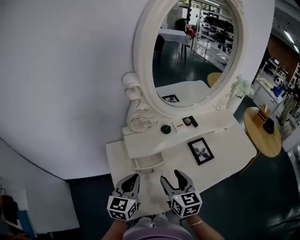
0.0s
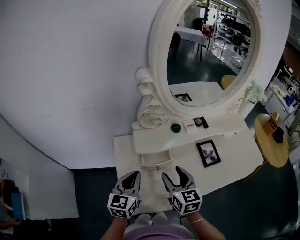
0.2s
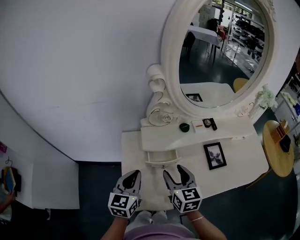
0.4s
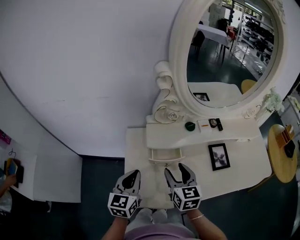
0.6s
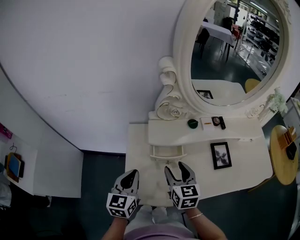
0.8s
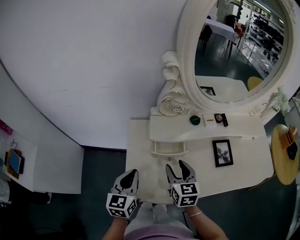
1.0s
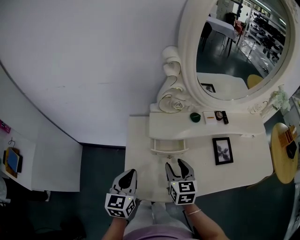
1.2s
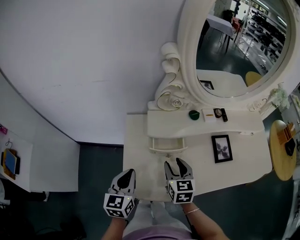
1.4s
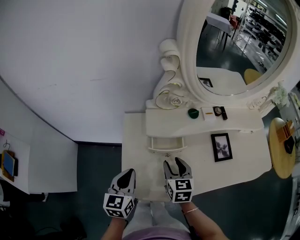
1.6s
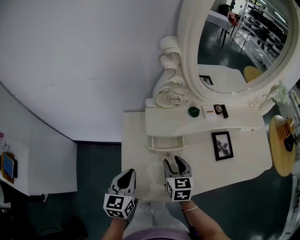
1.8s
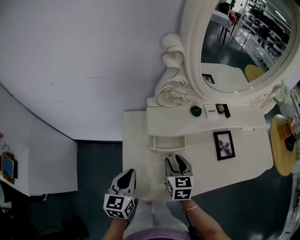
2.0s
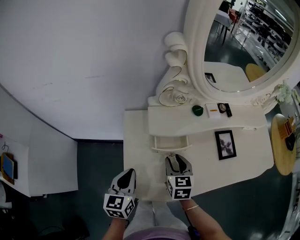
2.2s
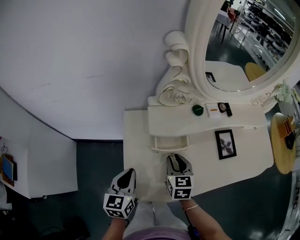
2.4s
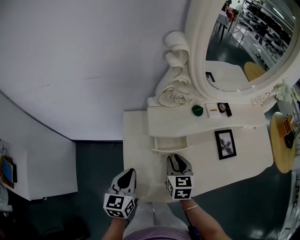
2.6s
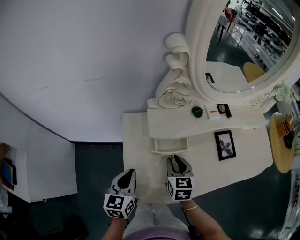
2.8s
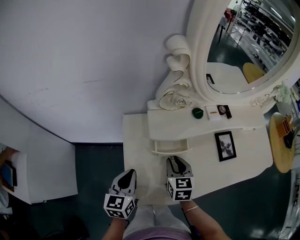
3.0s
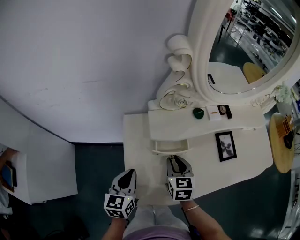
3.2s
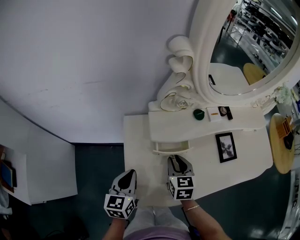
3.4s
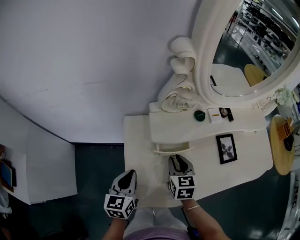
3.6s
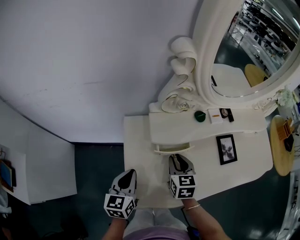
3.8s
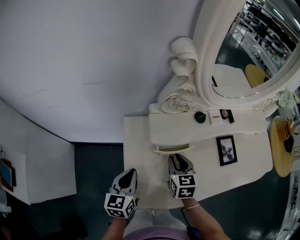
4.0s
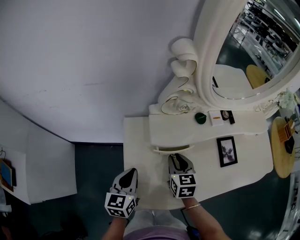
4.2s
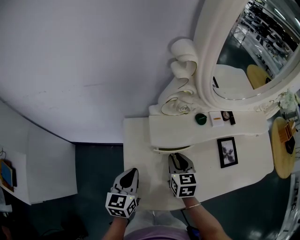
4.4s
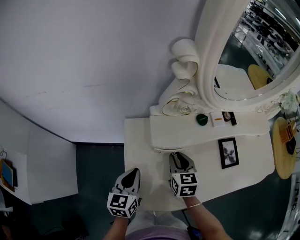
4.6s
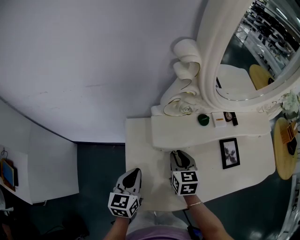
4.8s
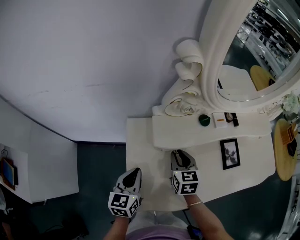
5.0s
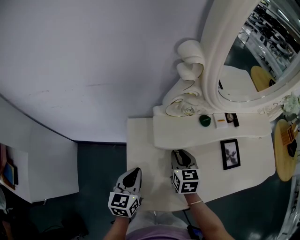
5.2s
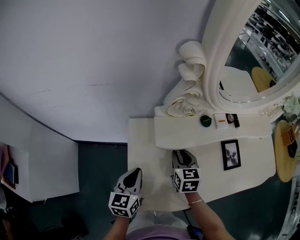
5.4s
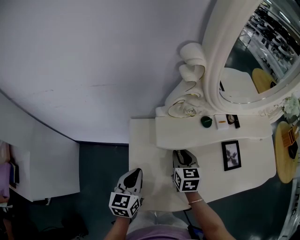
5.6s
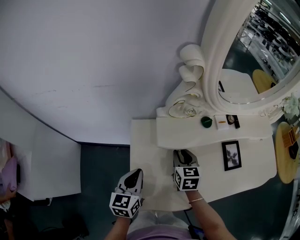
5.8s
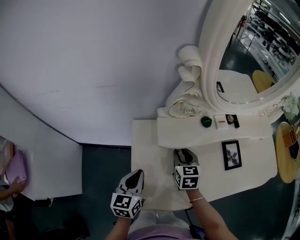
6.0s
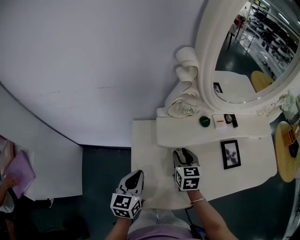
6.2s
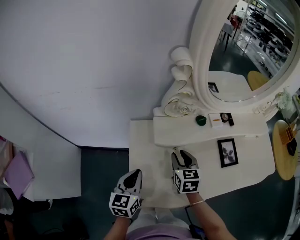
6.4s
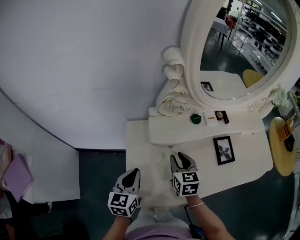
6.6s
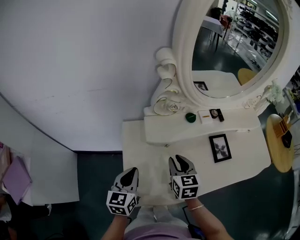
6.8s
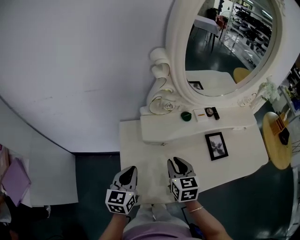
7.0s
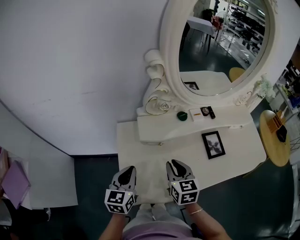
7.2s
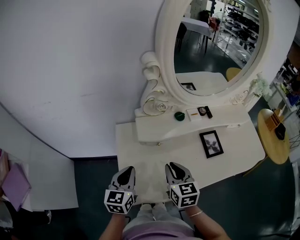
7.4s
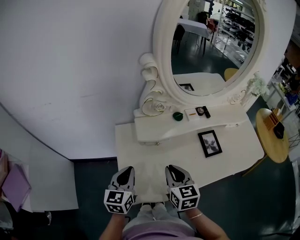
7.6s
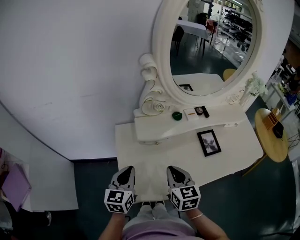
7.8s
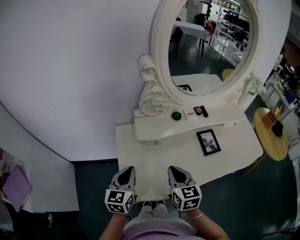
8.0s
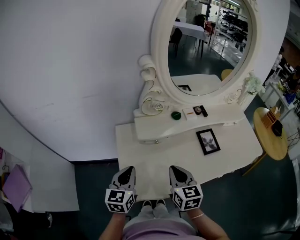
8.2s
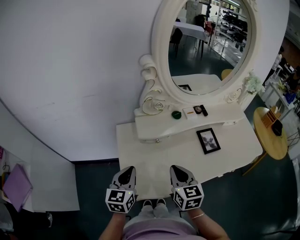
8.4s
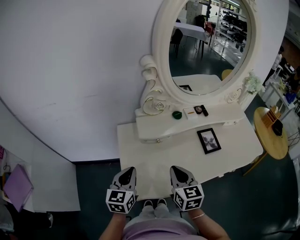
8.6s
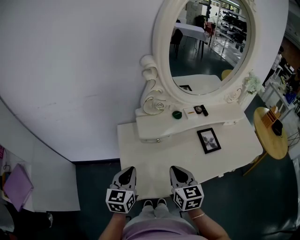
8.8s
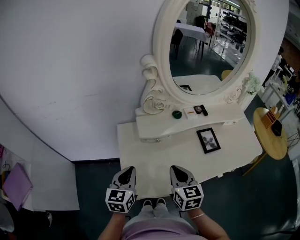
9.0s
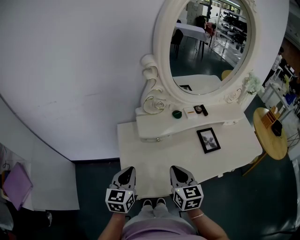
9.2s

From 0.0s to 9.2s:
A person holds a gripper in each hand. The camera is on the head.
From 0.0s to 1.6s: The right gripper heads downward, covering approximately 10 cm. The left gripper heads to the left, downward and backward, covering roughly 10 cm, and changes its angle by some 20 degrees.
From 1.6s to 3.0s: The grippers move only a little.
From 3.0s to 4.6s: The right gripper is displaced forward by roughly 5 cm.
From 4.6s to 6.2s: The grippers make only small movements.
From 6.2s to 7.6s: The right gripper goes about 15 cm backward and upward, and closes its fingers. Meanwhile the left gripper moves approximately 5 cm.
From 7.6s to 9.2s: The grippers move only a little.

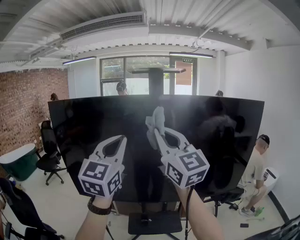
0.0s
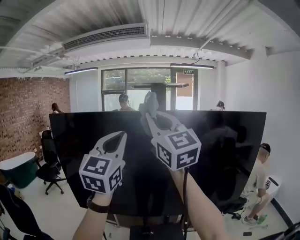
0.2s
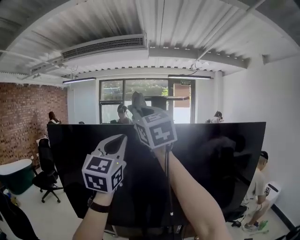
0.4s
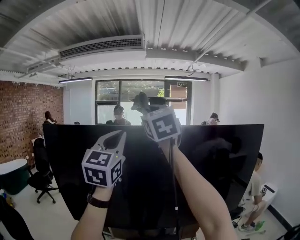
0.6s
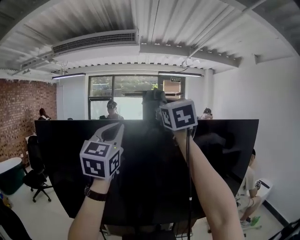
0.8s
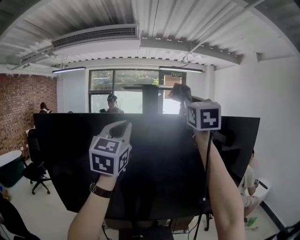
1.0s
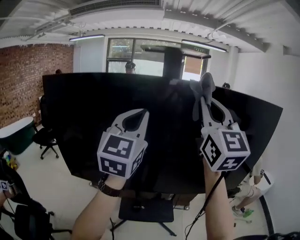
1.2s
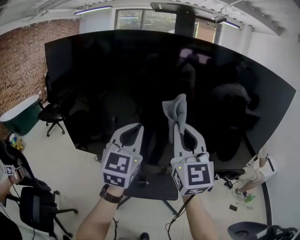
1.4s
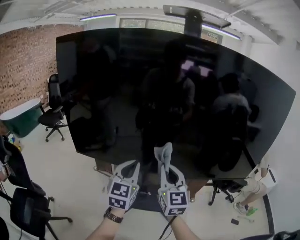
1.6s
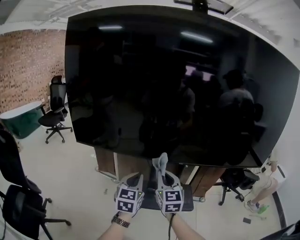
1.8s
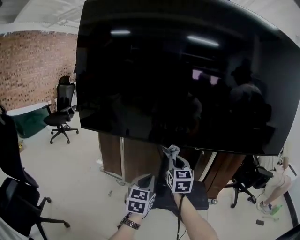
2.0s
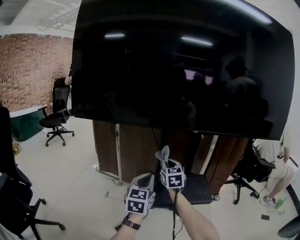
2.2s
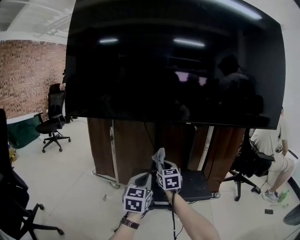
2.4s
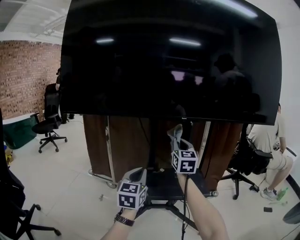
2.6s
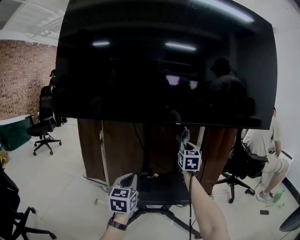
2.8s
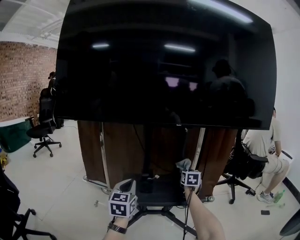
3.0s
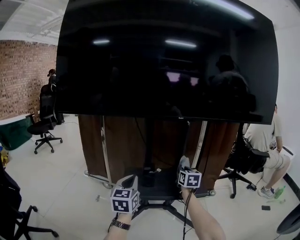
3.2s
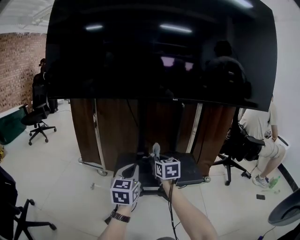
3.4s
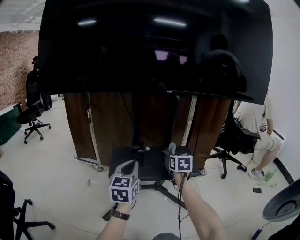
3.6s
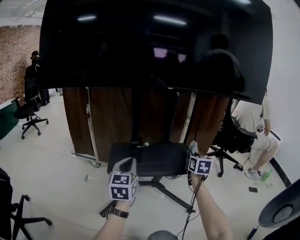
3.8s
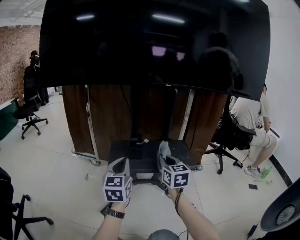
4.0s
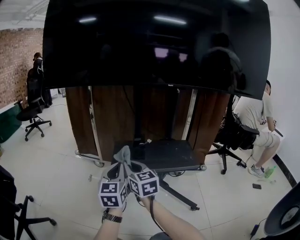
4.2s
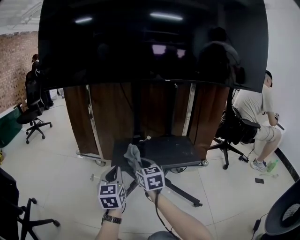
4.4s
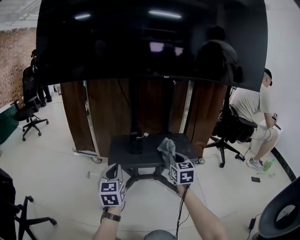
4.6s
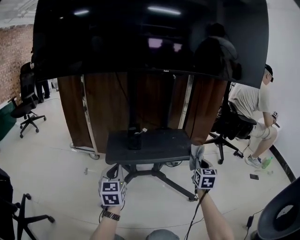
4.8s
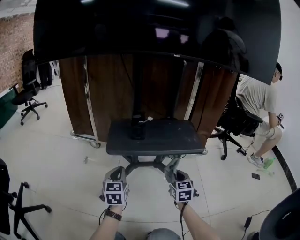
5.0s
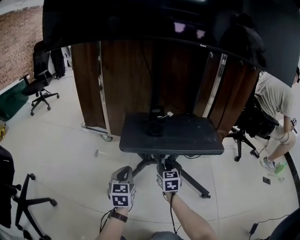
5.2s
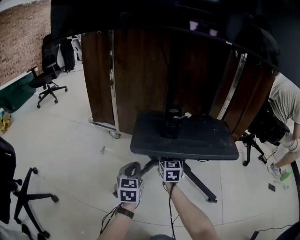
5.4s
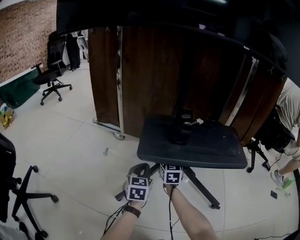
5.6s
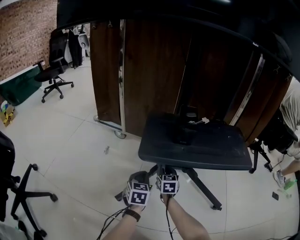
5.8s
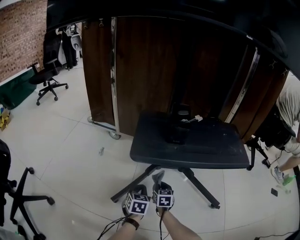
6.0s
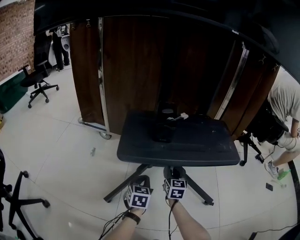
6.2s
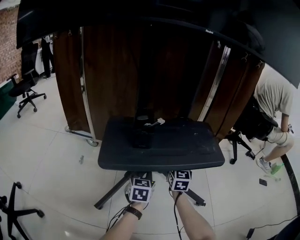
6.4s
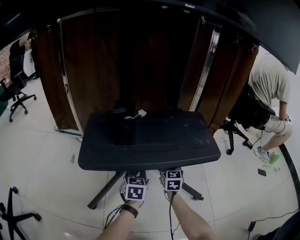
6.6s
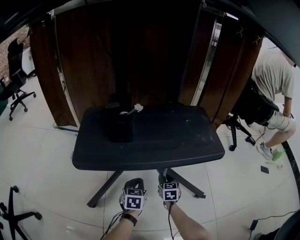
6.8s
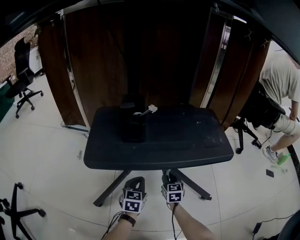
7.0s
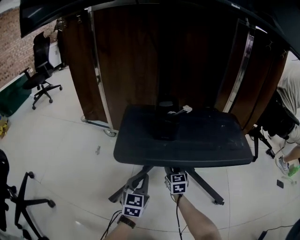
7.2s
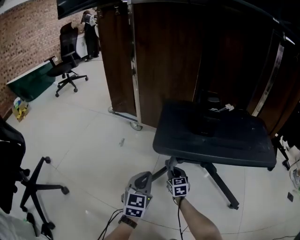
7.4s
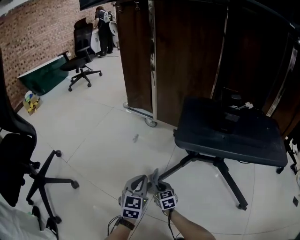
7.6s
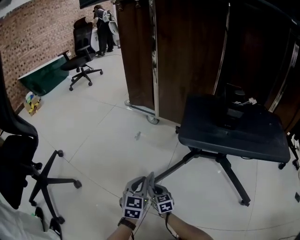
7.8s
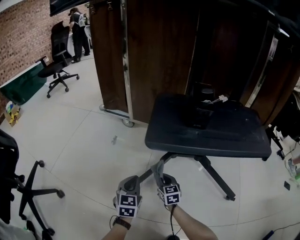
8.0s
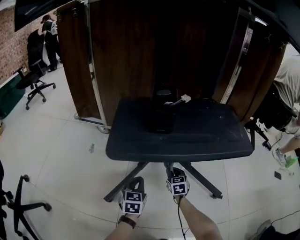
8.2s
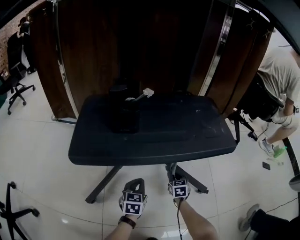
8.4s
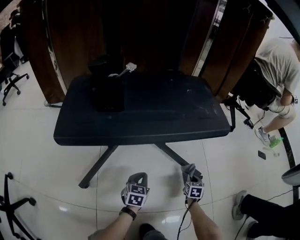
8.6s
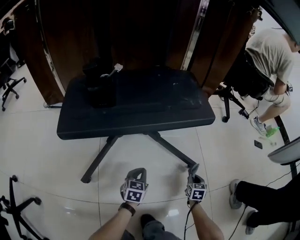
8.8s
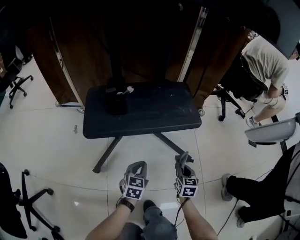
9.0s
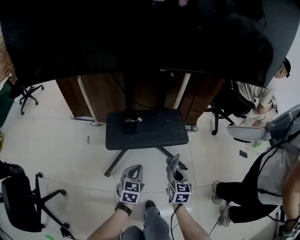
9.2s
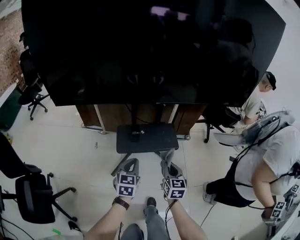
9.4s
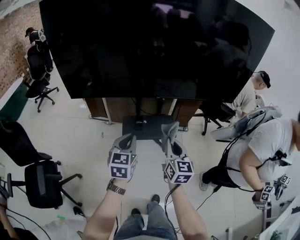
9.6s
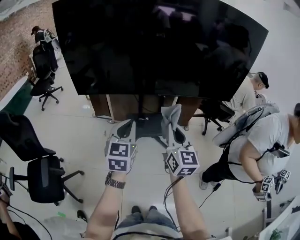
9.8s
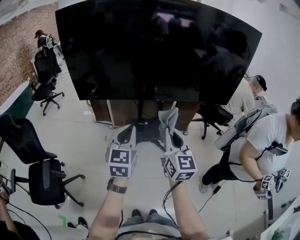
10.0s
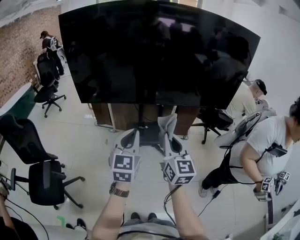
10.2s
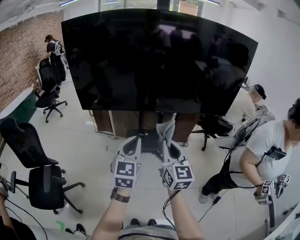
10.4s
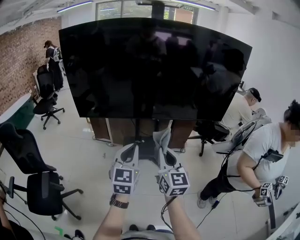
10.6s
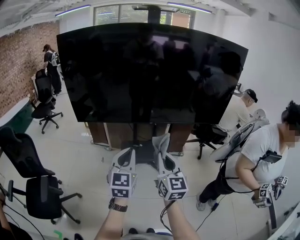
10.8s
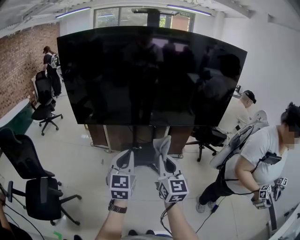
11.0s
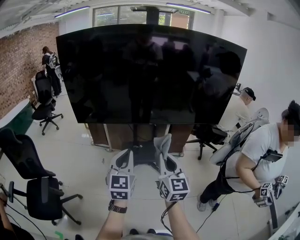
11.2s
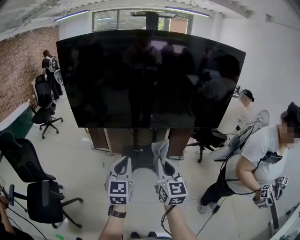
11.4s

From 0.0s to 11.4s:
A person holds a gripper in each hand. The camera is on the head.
From 0.0s to 1.4s: Both grippers move downward, roughly 20 cm.
From 1.4s to 2.8s: Both grippers travel together downward, roughly 70 cm. The right gripper changes its angle by roughly 20 degrees.
From 2.8s to 4.2s: The right gripper swings left and right, some 35 cm each way, with 3 reversals, and swivels about 30 degrees; the left gripper goes roughly 10 cm downward and backward.
From 4.2s to 5.6s: Both grippers travel together downward and forward, approximately 30 cm. The right gripper goes to the right and returns, roughly 40 cm each way.
From 5.6s to 7.2s: The left gripper moves downward and to the right, approximately 10 cm; the right gripper goes about 15 cm downward and to the right.
From 7.2s to 8.6s: The left gripper goes approximately 20 cm downward, and rotates about 20 degrees. Meanwhile the right gripper moves up and down over some 20 cm, changing direction 2 times, and turns by some 40 degrees.
From 8.6s to 10.0s: Both grippers are carried backward, about 40 cm. The grippers both shift upward by roughly 1 m. The left gripper tilts its fingers about 30 degrees upward, while the right gripper points its fingers some 50 degrees further upward.
From 10.0s to 11.4s: The left gripper goes roughly 5 cm backward.

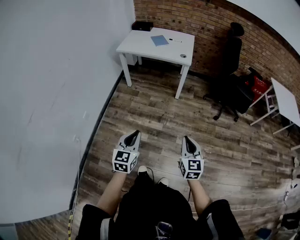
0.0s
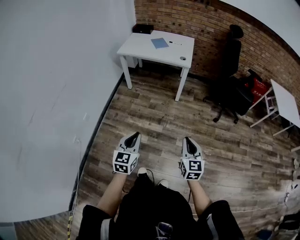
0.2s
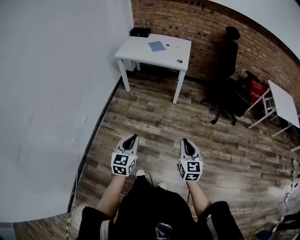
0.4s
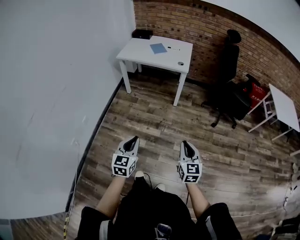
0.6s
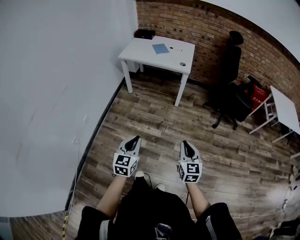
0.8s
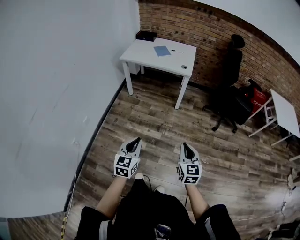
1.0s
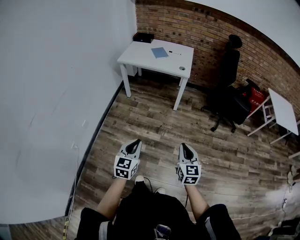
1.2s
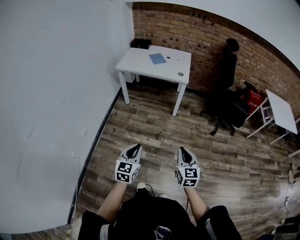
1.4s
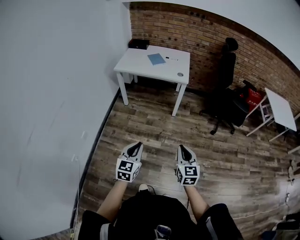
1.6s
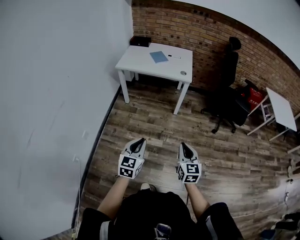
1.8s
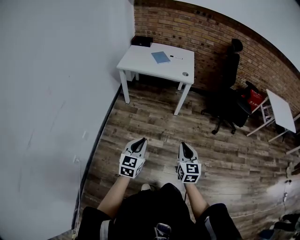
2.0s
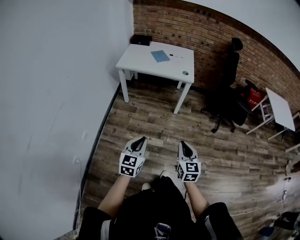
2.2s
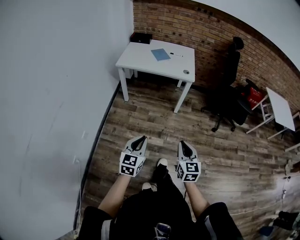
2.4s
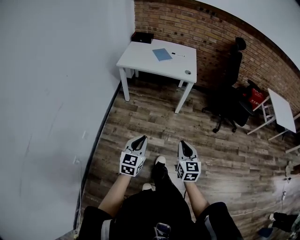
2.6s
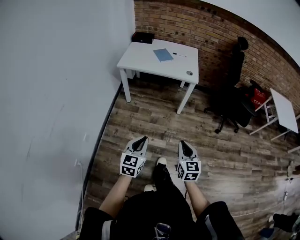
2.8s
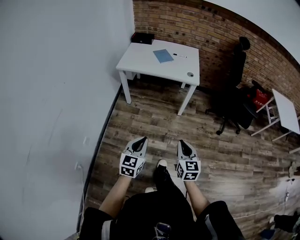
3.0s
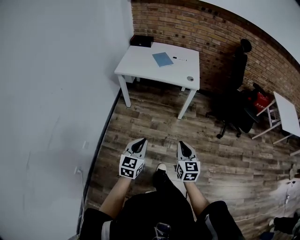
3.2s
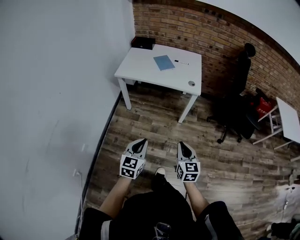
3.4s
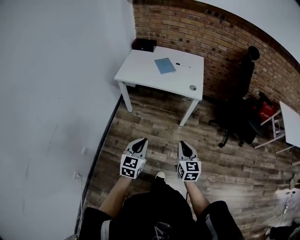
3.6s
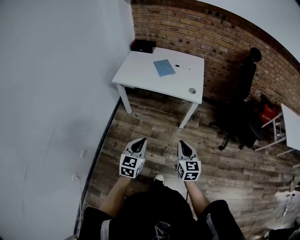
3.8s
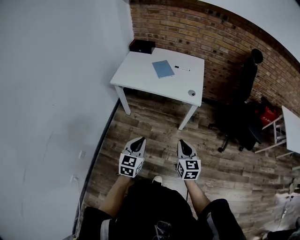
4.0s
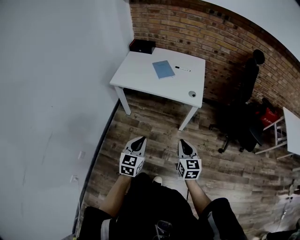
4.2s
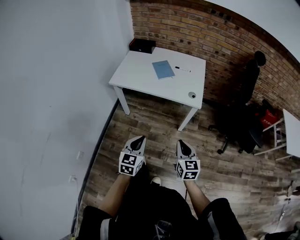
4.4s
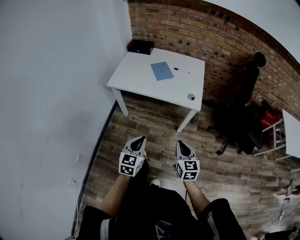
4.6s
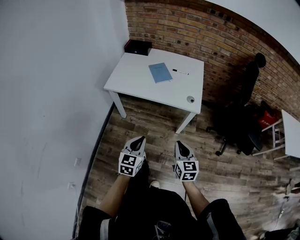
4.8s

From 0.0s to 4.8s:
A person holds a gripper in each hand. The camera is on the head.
From 0.0s to 1.6s: The right gripper shifts approximately 5 cm to the left and forward; the left gripper is displaced forward by some 5 cm.
From 1.6s to 3.2s: The left gripper shifts some 20 cm forward, while the right gripper is displaced forward and to the left by about 20 cm.
From 3.2s to 4.8s: Both grippers move forward, about 25 cm.
